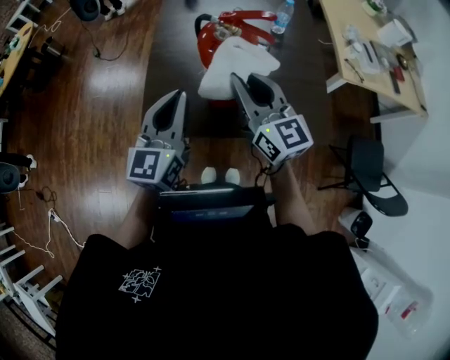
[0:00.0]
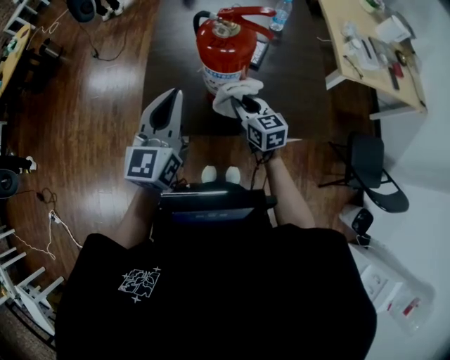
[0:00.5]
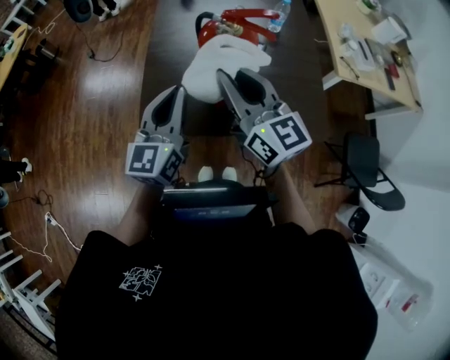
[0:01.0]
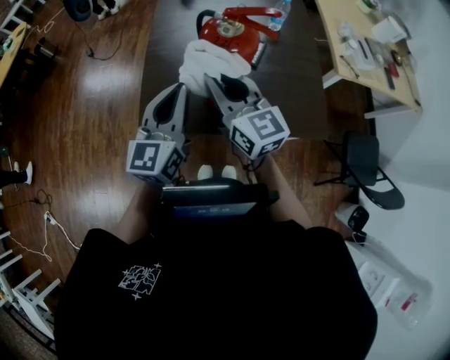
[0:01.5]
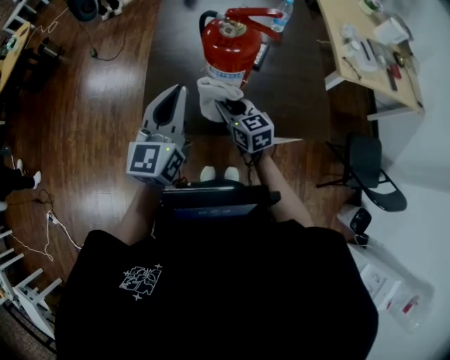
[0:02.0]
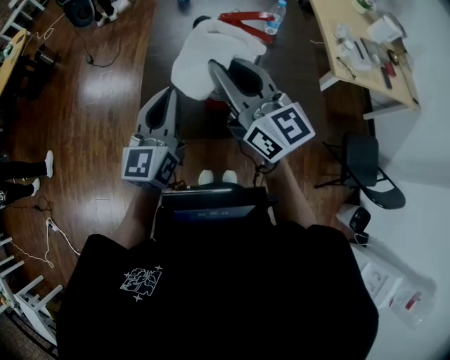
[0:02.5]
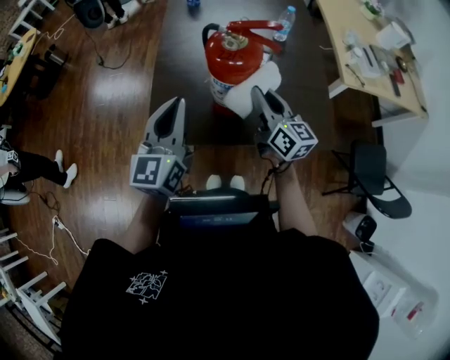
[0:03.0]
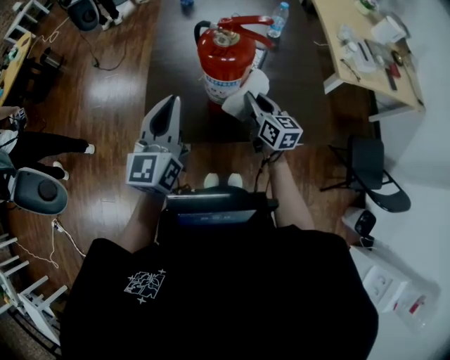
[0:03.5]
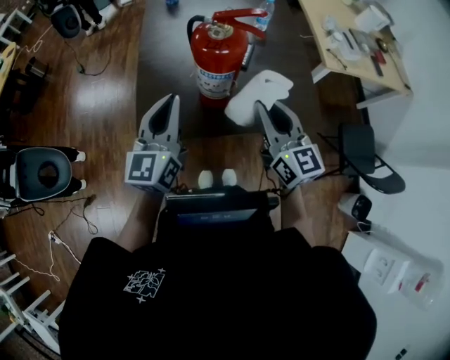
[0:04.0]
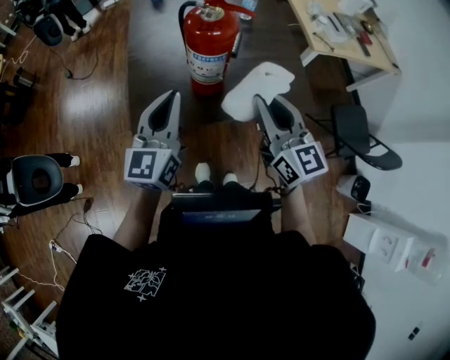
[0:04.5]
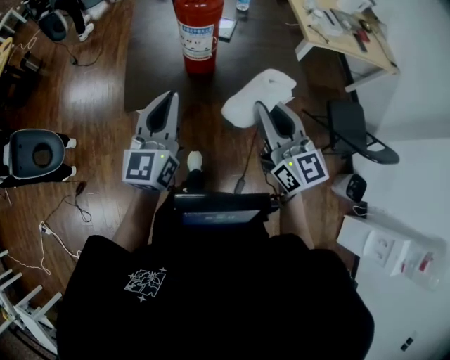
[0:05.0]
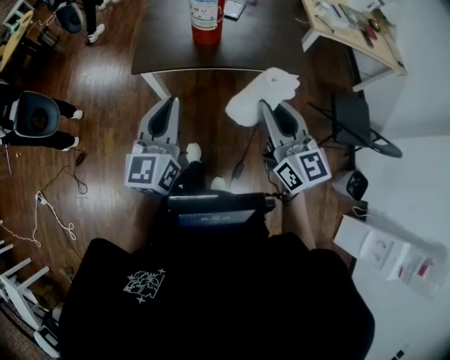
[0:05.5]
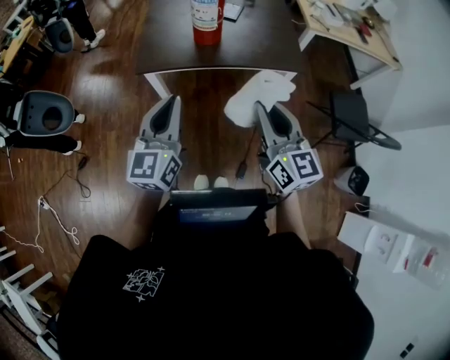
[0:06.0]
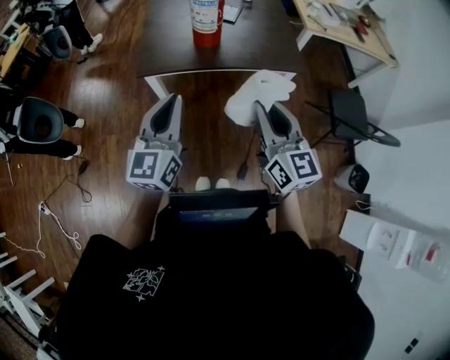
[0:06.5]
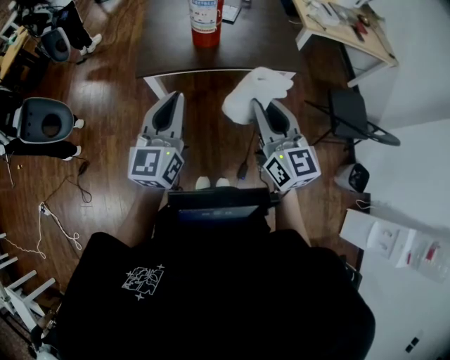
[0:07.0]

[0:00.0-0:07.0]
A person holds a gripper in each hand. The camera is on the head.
0:00.0 to 0:02.0: The right gripper moves up and down over roughly 25 cm, changing direction 2 times, and swivels approximately 20 degrees.
0:02.0 to 0:03.5: The right gripper moves to the right, some 10 cm, travels upward and back again, some 25 cm each way, and swivels roughly 20 degrees.
0:03.5 to 0:05.0: The right gripper goes some 35 cm backward and upward, and swivels approximately 20 degrees, while the left gripper shifts approximately 15 cm backward.
0:05.0 to 0:07.0: The two grippers go about 15 cm backward.

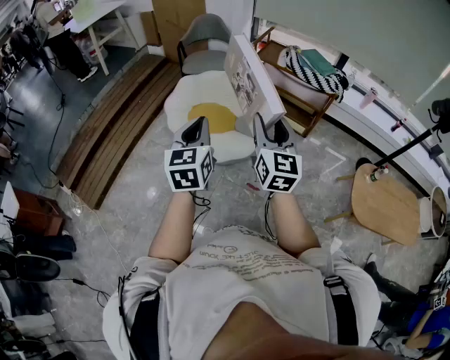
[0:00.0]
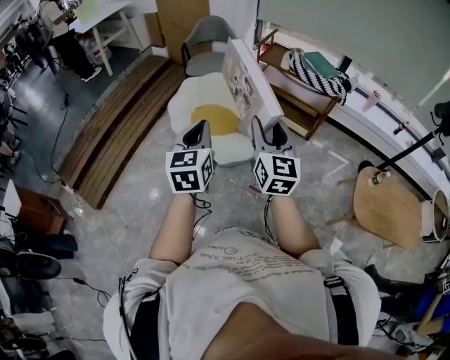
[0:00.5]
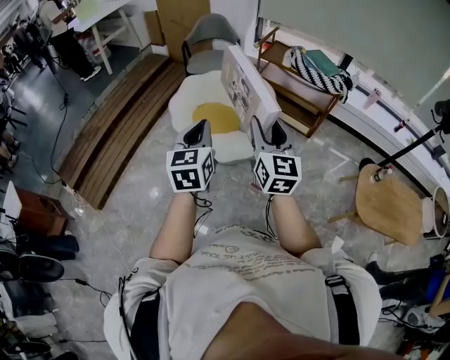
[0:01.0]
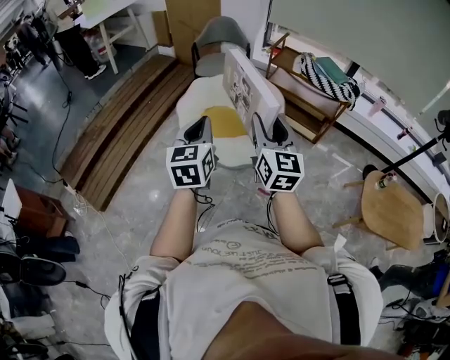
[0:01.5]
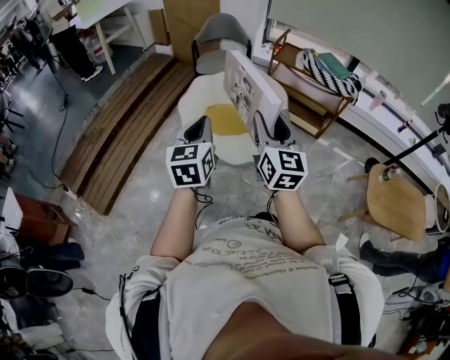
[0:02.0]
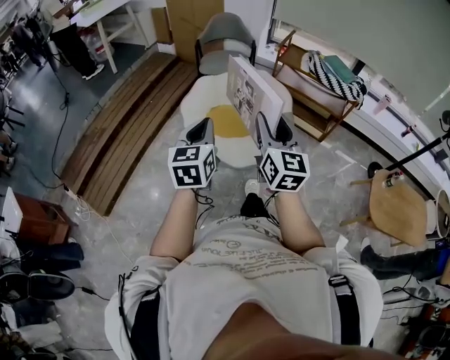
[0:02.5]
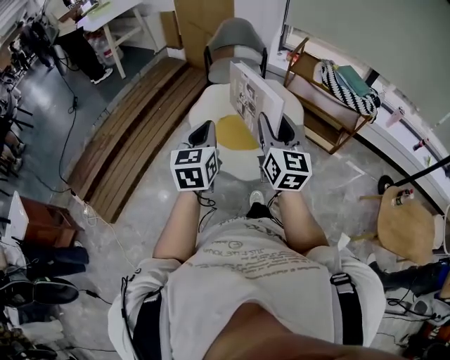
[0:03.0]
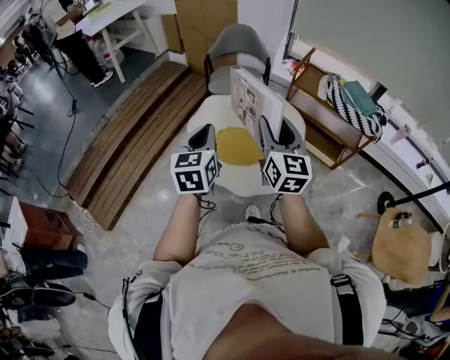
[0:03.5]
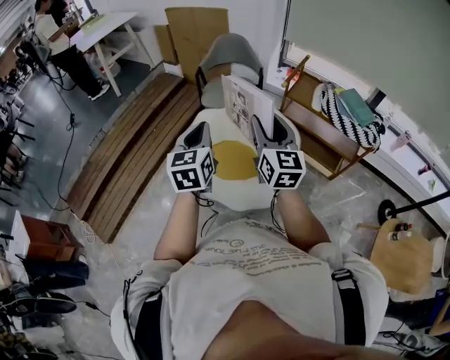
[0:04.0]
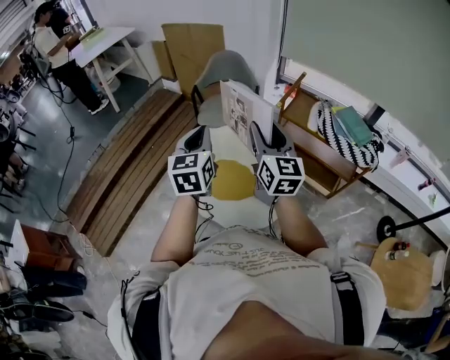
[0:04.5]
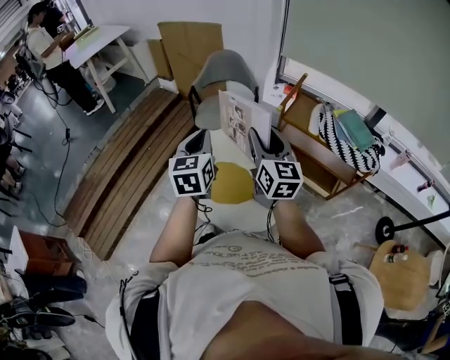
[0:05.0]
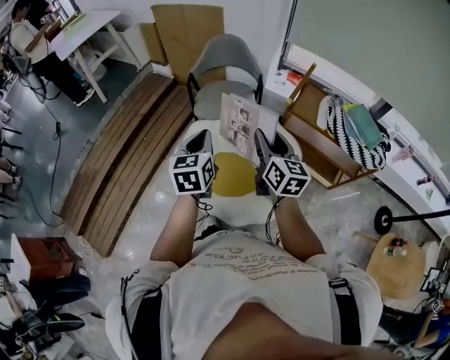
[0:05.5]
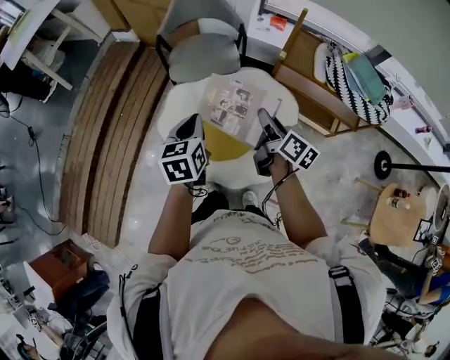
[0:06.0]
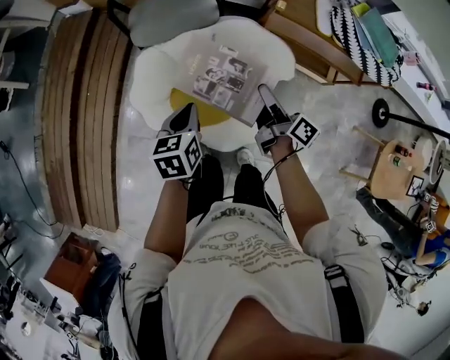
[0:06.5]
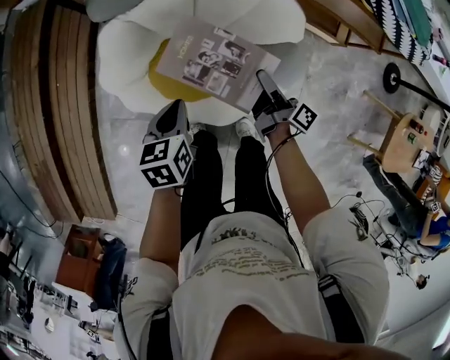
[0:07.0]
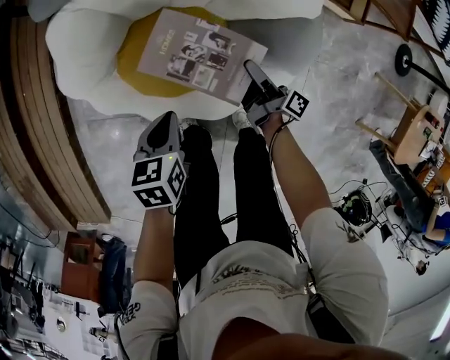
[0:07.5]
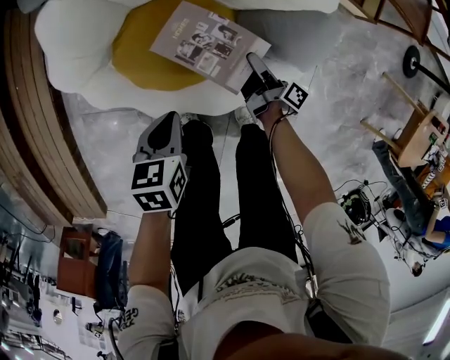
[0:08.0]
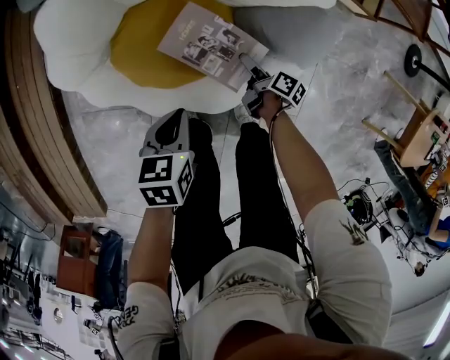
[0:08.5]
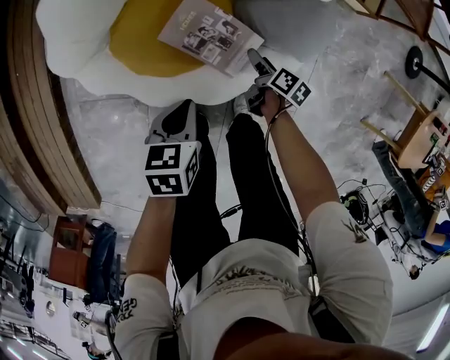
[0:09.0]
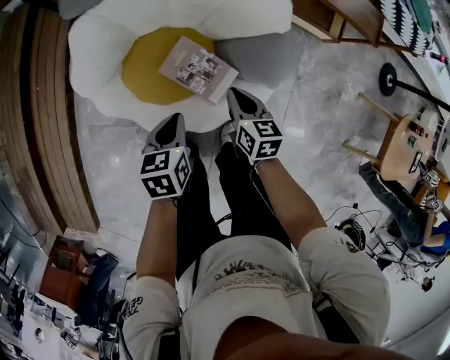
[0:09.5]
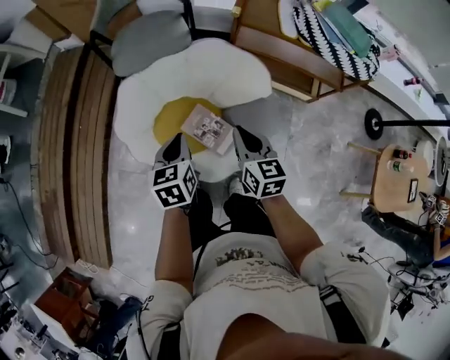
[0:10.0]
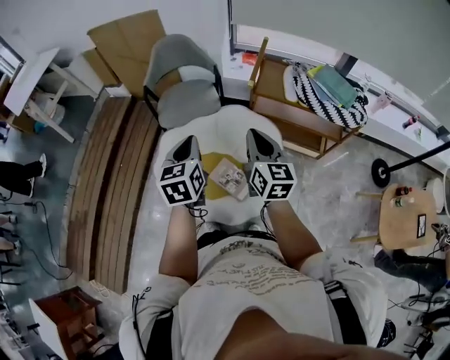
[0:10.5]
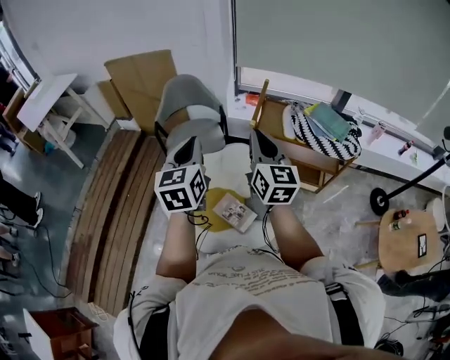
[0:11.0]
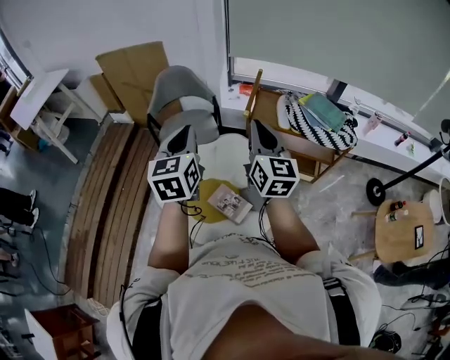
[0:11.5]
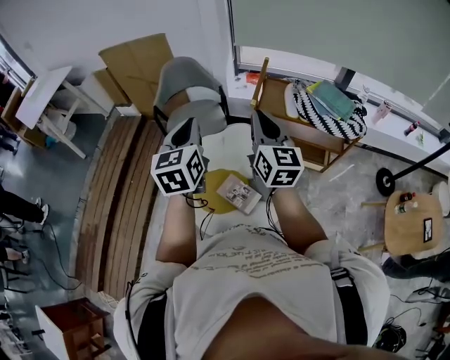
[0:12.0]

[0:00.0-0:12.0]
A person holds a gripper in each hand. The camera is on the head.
0:00.0 to 0:02.0: Both grippers travel together to the left, about 15 cm.
0:02.0 to 0:04.0: Both grippers travel together forward, about 30 cm.
0:04.0 to 0:06.0: The right gripper heads downward and forward, covering roughly 30 cm, and rotates around the line of its fingers by roughly 50 degrees, clockwise from behind; the left gripper moves forward and downward, approximately 25 cm, and changes its angle by roughly 20 degrees.
0:06.0 to 0:08.0: The two grippers go approximately 50 cm downward. The right gripper changes its angle by about 40 degrees. The left gripper changes its angle by roughly 40 degrees.
0:08.0 to 0:10.0: The right gripper is displaced upward by about 40 cm, twists some 80 degrees counterclockwise, seen from behind, and closes its fingers. Meanwhile the left gripper travels upward by roughly 30 cm, and turns by roughly 30 degrees.
0:10.0 to 0:12.0: The two grippers go roughly 35 cm upward. The right gripper changes its angle by roughly 30 degrees. The left gripper turns by roughly 30 degrees.

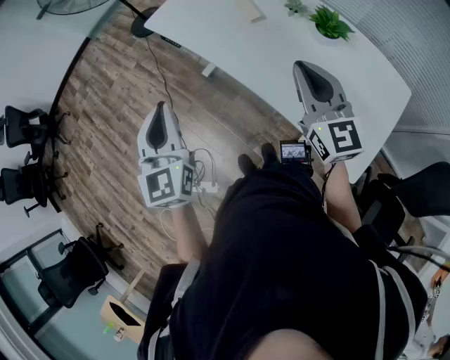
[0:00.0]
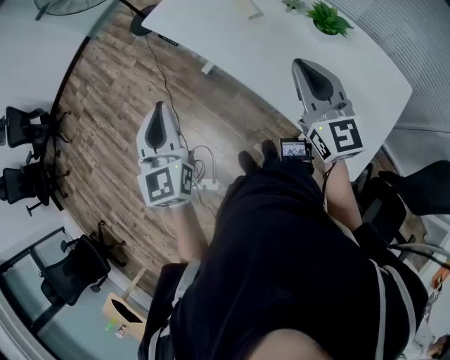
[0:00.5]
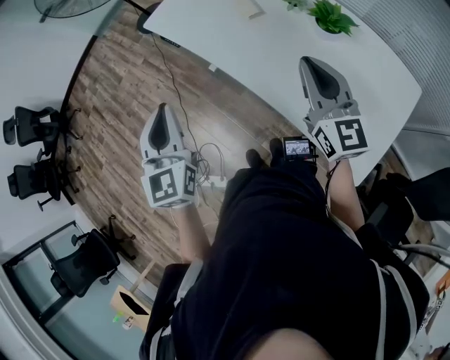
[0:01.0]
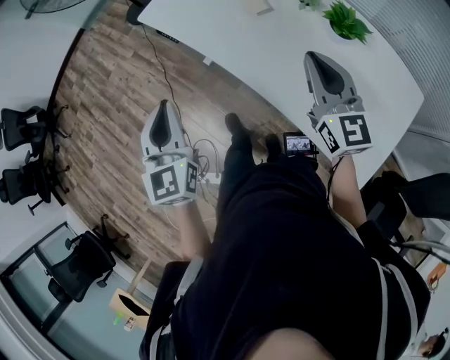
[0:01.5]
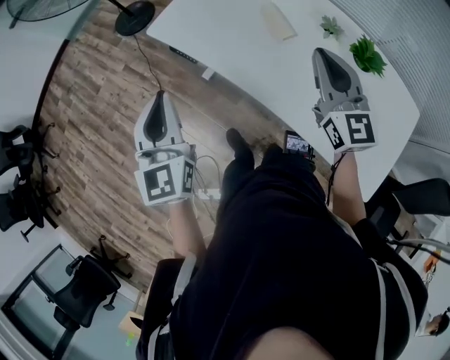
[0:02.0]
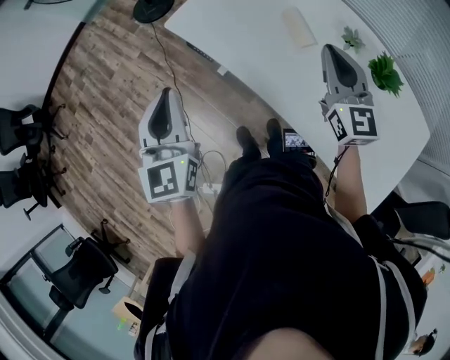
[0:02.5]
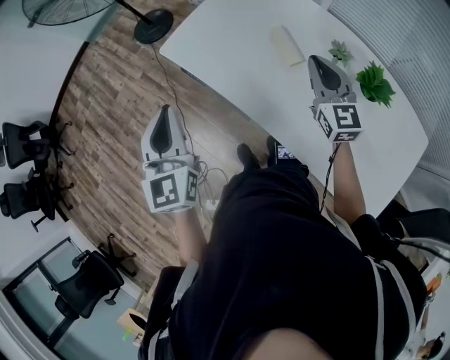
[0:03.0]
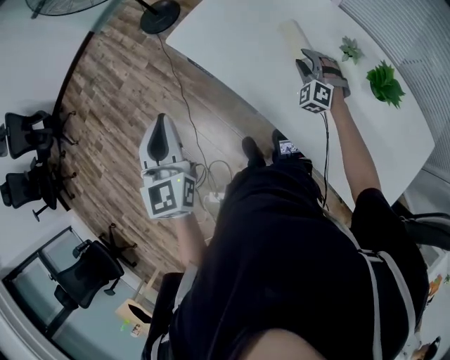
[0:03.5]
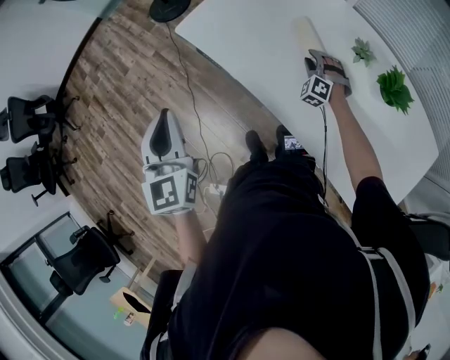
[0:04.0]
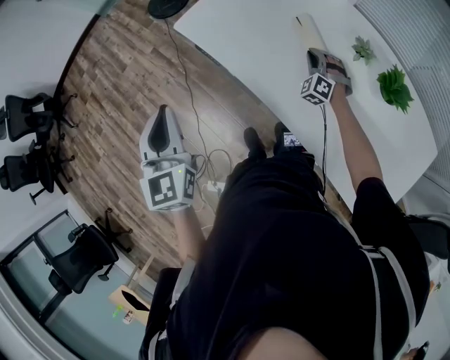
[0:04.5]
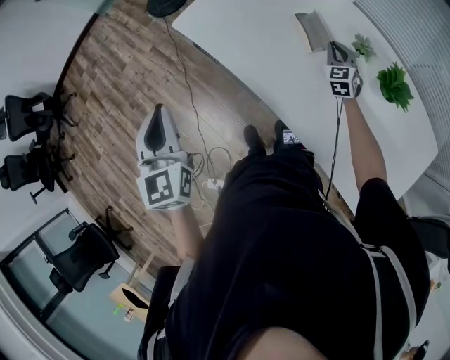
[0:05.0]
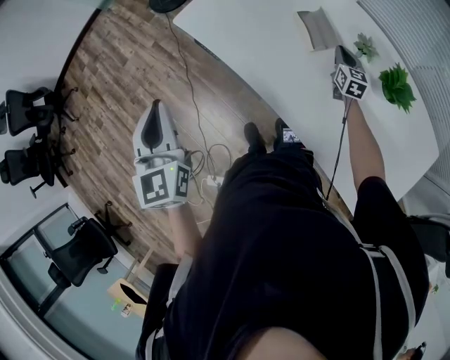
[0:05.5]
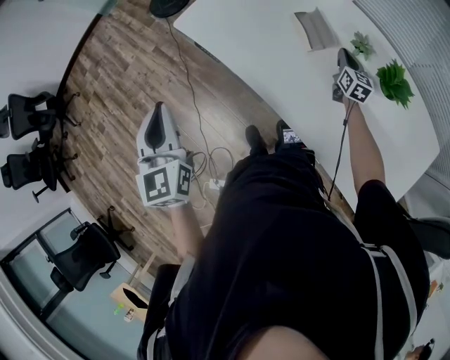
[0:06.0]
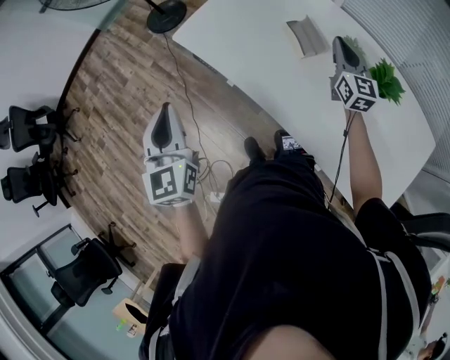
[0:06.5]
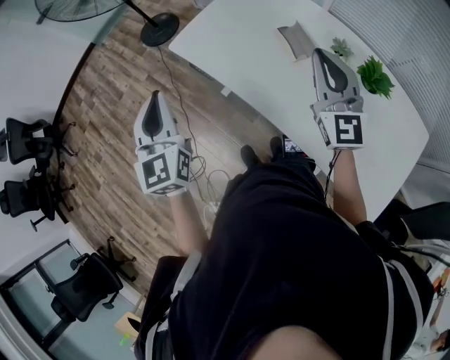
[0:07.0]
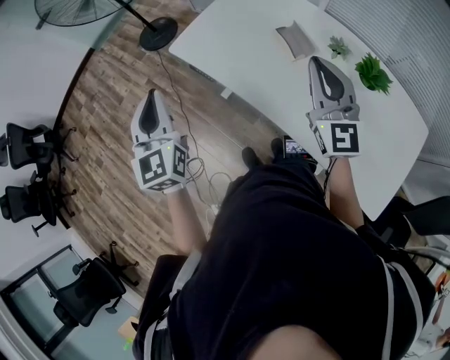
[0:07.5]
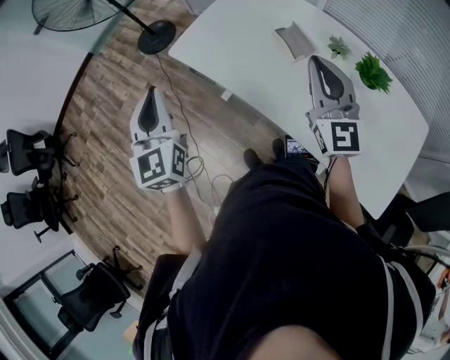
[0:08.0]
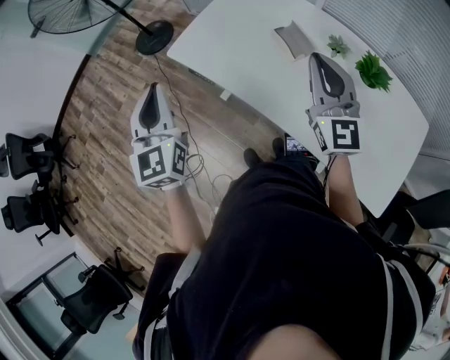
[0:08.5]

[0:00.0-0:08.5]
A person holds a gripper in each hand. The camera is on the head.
0:00.0 to 0:02.0: Both grippers travel together forward, some 20 cm.
0:02.0 to 0:04.0: The right gripper is displaced downward and forward by some 35 cm, twists approximately 60 degrees counterclockwise, seen from behind, and opens its fingers.
0:04.0 to 0:06.5: The right gripper moves upward, approximately 20 cm, twists approximately 70 degrees clockwise, seen from behind, and closes.
0:06.5 to 0:08.5: The left gripper travels forward by approximately 5 cm. The right gripper is displaced upward, to the left and backward by approximately 20 cm.
